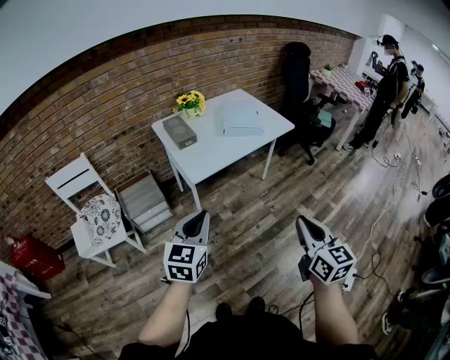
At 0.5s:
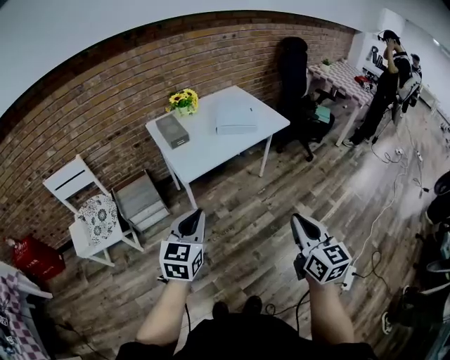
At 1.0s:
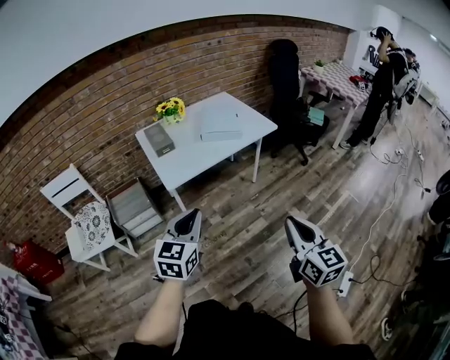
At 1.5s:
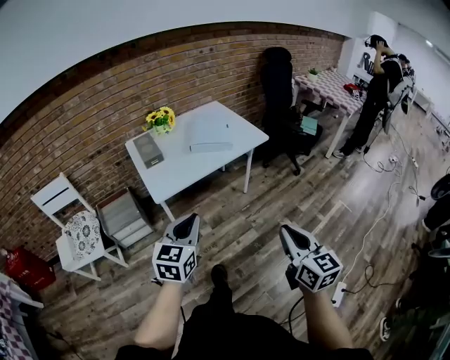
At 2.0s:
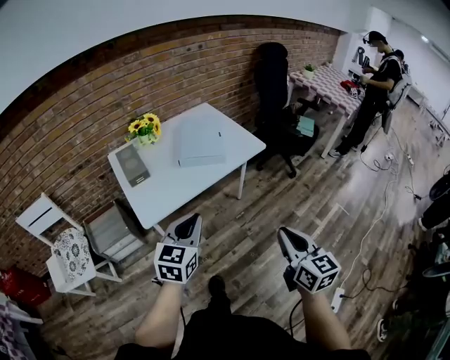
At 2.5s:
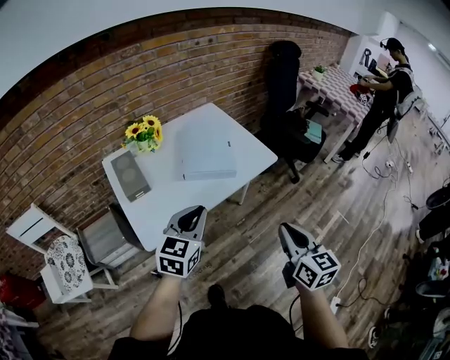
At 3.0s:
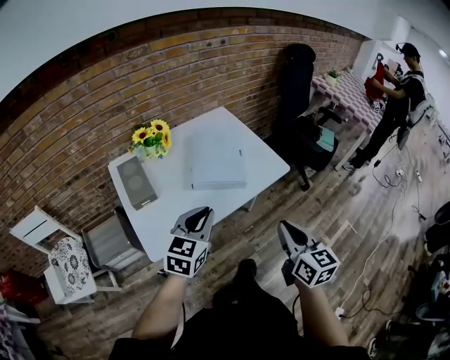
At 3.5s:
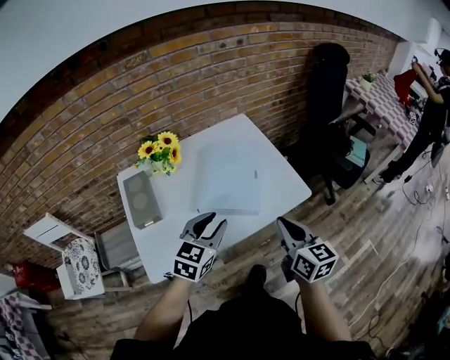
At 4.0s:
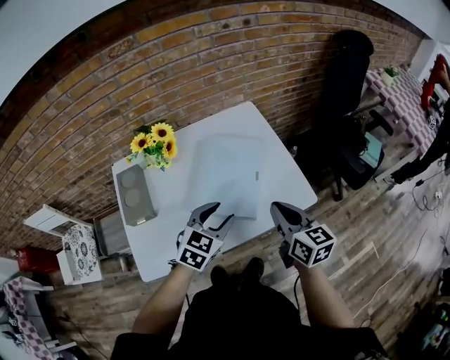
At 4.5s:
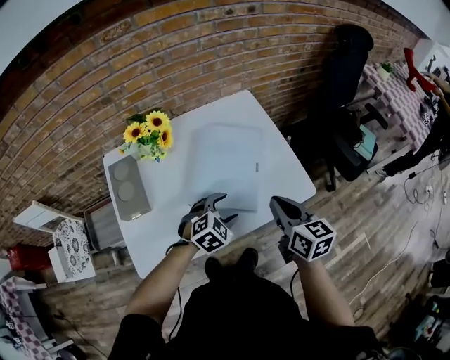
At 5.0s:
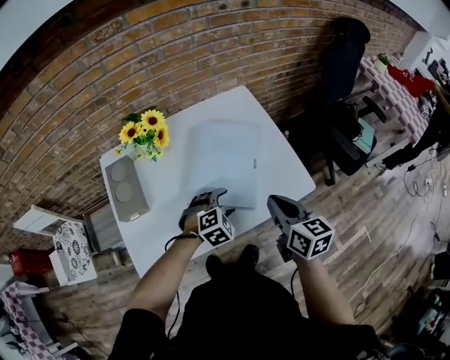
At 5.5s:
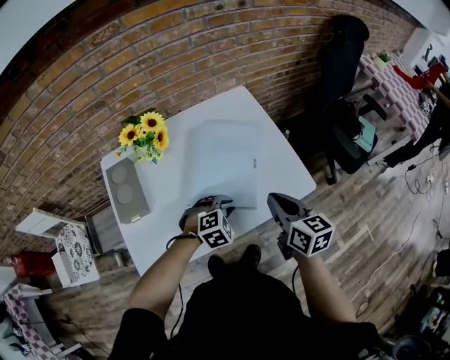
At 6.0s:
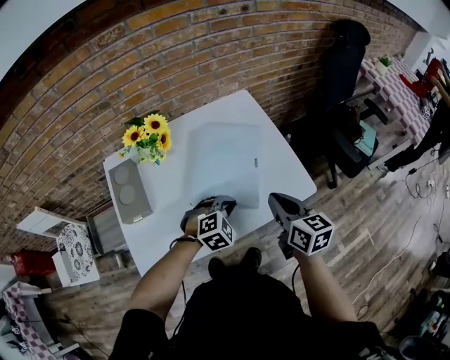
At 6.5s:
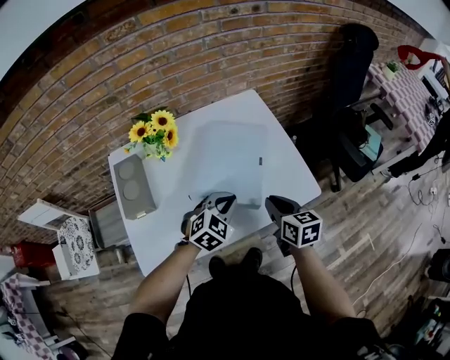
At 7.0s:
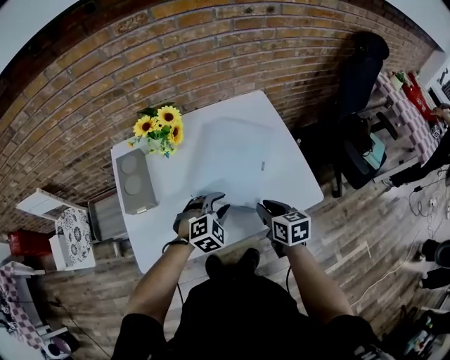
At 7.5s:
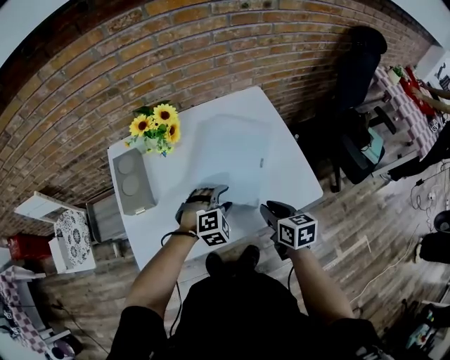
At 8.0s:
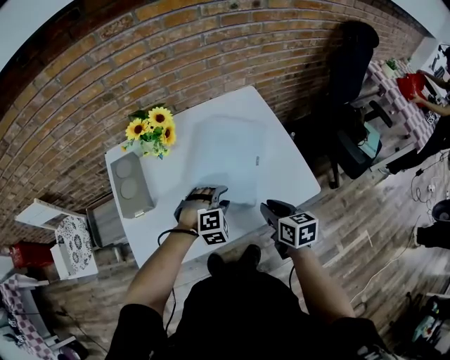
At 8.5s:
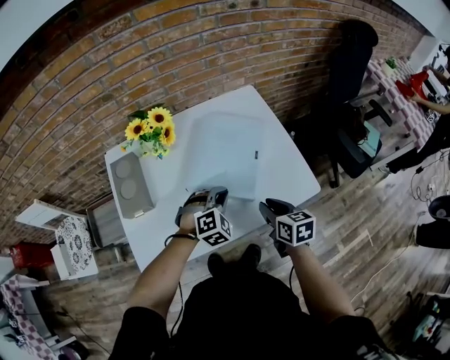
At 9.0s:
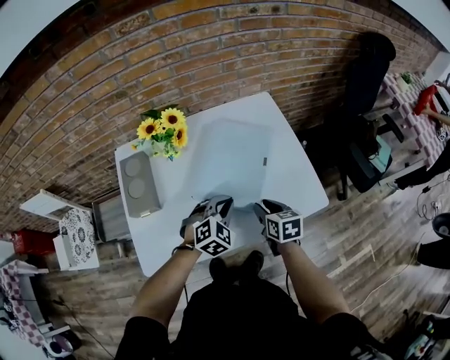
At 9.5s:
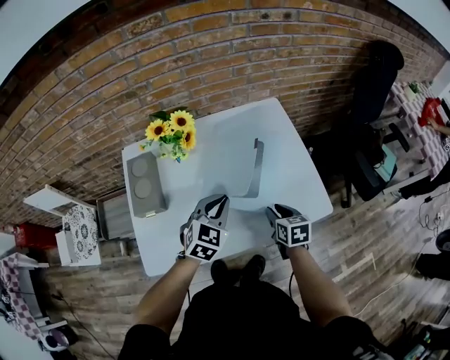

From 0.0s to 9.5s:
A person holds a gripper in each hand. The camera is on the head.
From 0.0s to 2.0s: Both grippers move forward and to the right, about 25 cm.
From 2.0s to 4.0s: Both grippers travel together forward, roughly 40 cm. The left gripper opens; the right gripper turns by roughly 20 degrees.
From 4.0s to 5.5s: The left gripper goes some 10 cm downward, and swivels about 40 degrees.
From 5.5s to 7.5s: The right gripper heads downward, covering about 10 cm, and opens. Meanwhile the left gripper opens its fingers.
From 7.5s to 9.5s: The right gripper changes place by roughly 5 cm. Meanwhile the left gripper travels upward by roughly 10 cm, rolls counterclockwise, seen from behind, by roughly 40 degrees, and closes its fingers.

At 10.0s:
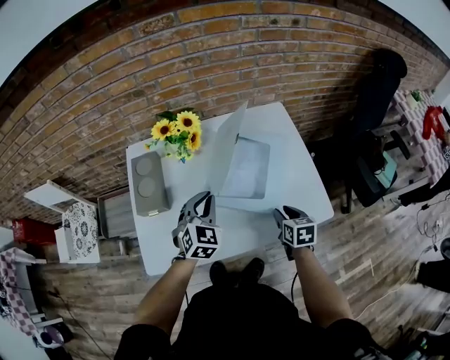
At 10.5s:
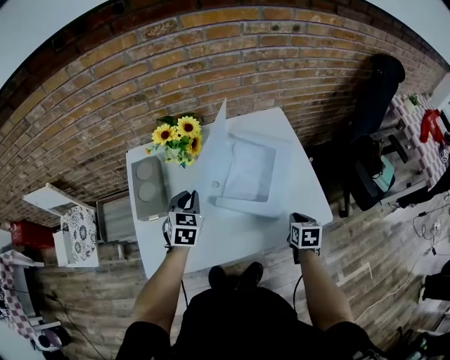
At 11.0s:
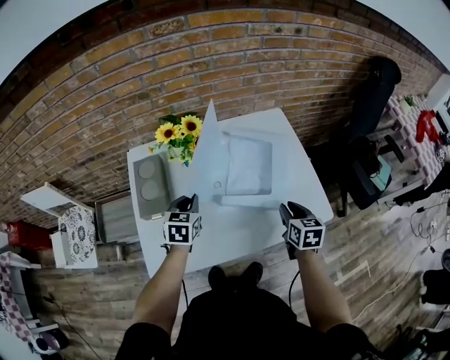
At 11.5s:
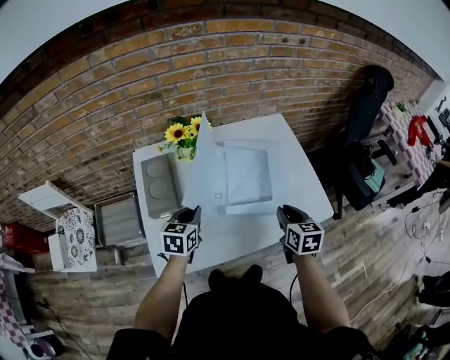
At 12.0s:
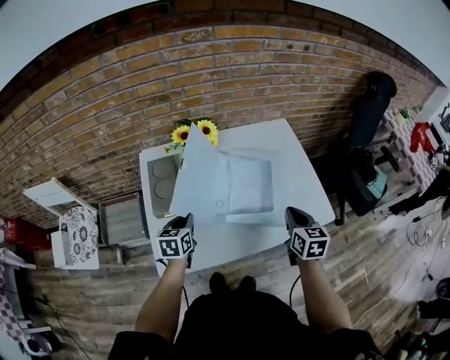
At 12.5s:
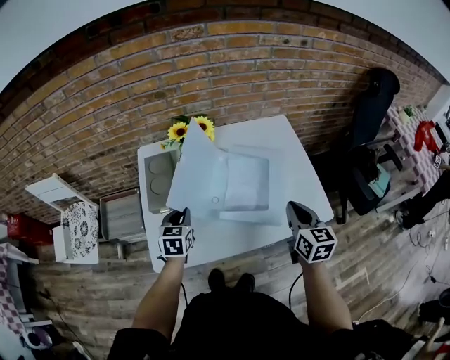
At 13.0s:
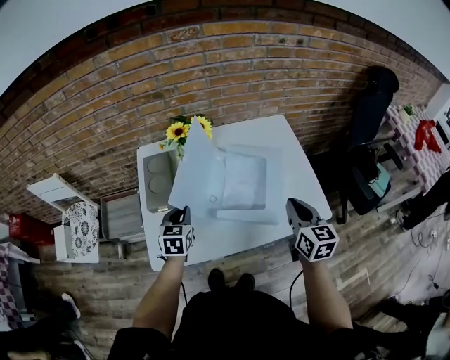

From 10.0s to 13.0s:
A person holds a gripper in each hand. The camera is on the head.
From 10.0s to 11.5s: The left gripper shifts some 10 cm to the left, and rotates approximately 40 degrees. Meanwhile the right gripper travels upward and to the left by some 10 cm.
From 11.5s to 13.0s: The right gripper goes roughly 10 cm upward.

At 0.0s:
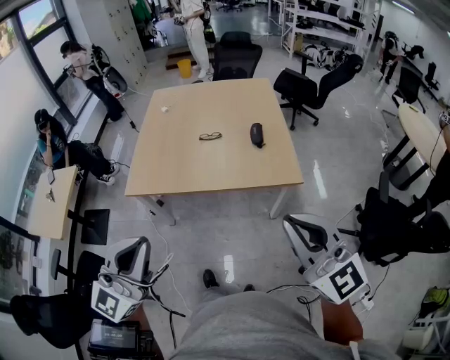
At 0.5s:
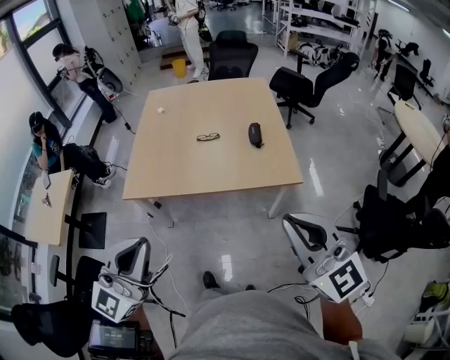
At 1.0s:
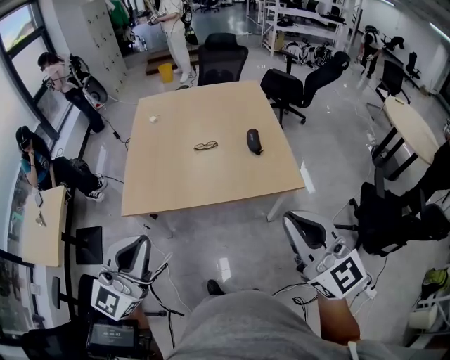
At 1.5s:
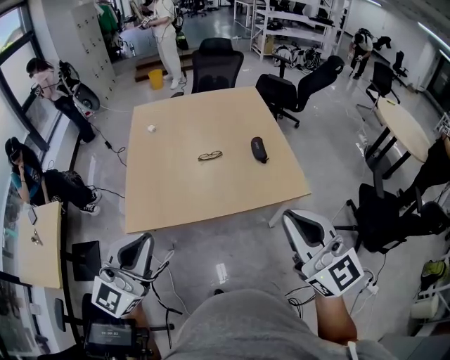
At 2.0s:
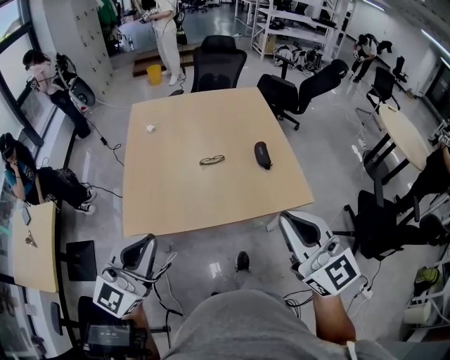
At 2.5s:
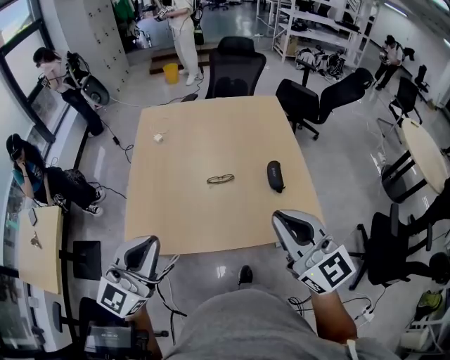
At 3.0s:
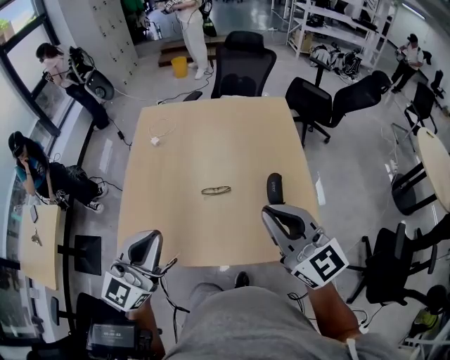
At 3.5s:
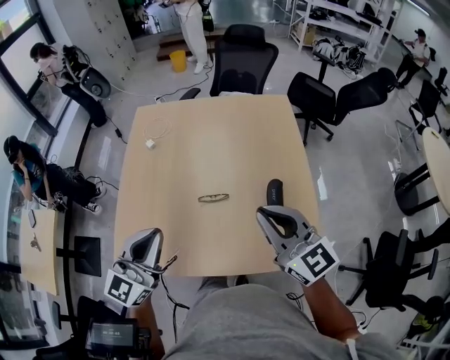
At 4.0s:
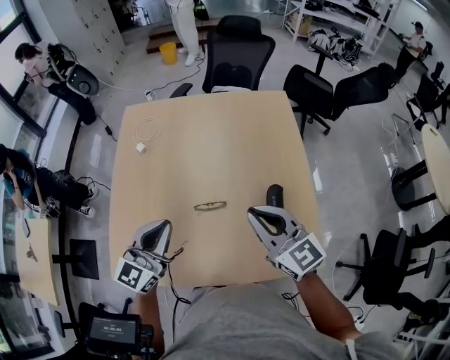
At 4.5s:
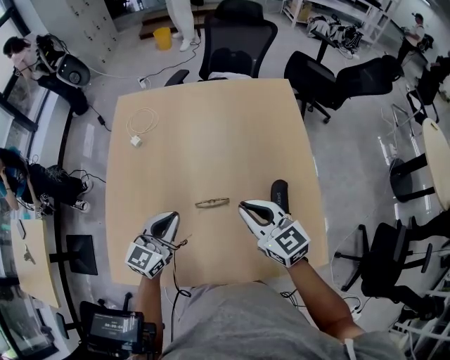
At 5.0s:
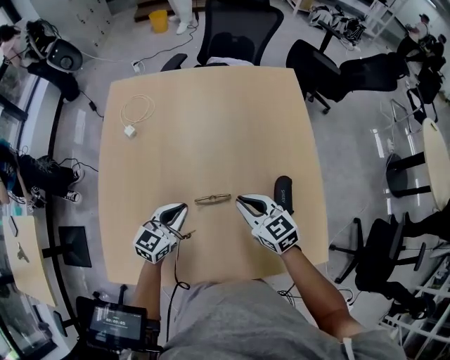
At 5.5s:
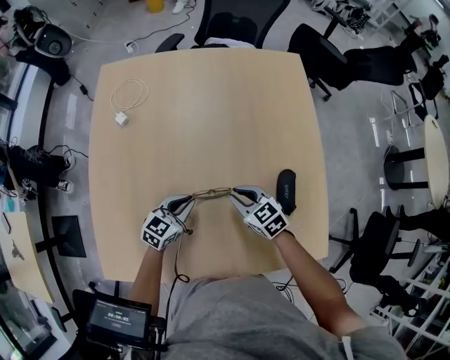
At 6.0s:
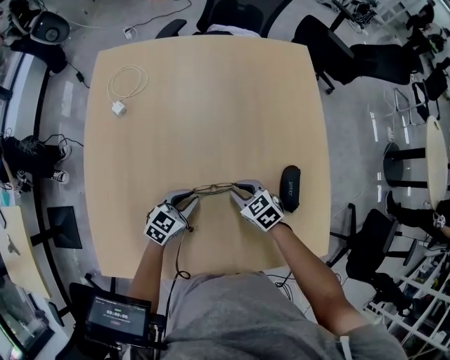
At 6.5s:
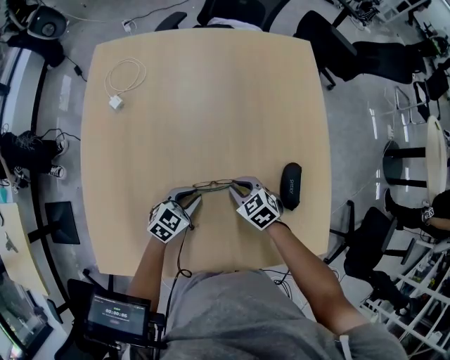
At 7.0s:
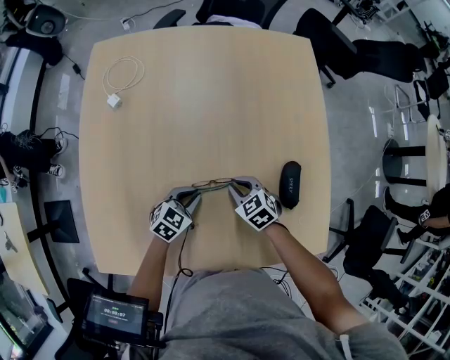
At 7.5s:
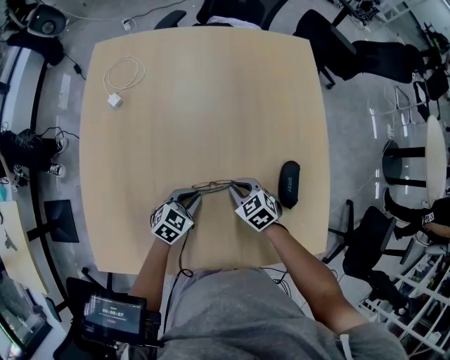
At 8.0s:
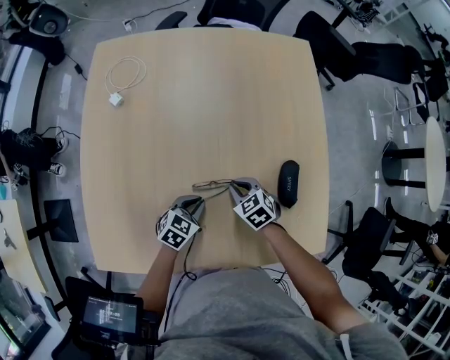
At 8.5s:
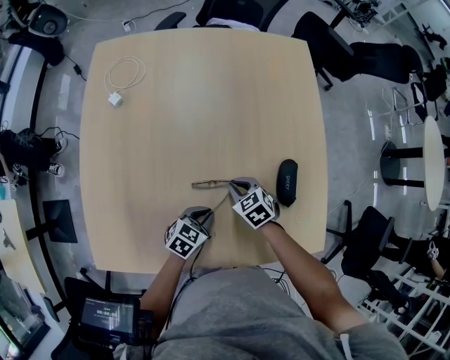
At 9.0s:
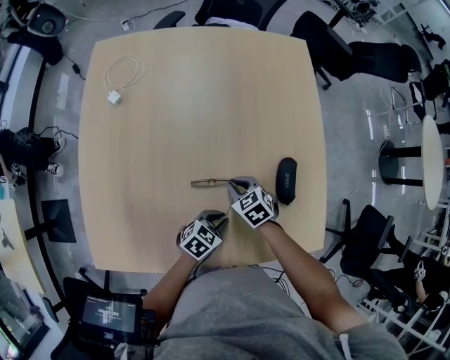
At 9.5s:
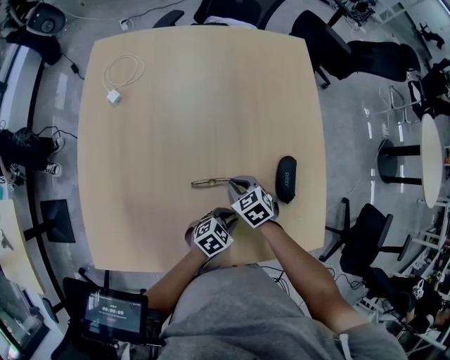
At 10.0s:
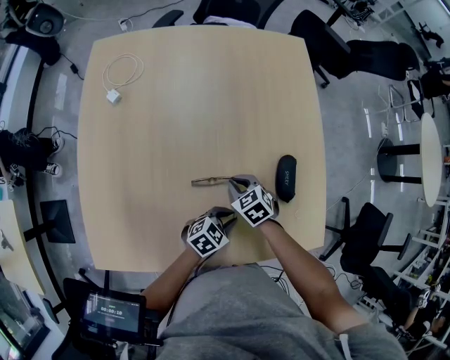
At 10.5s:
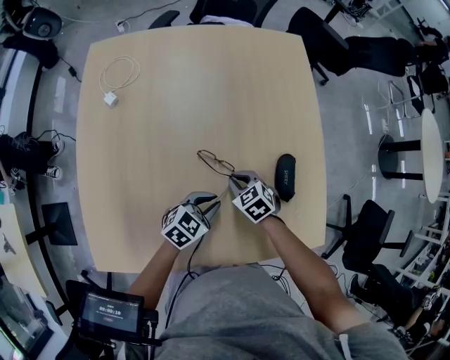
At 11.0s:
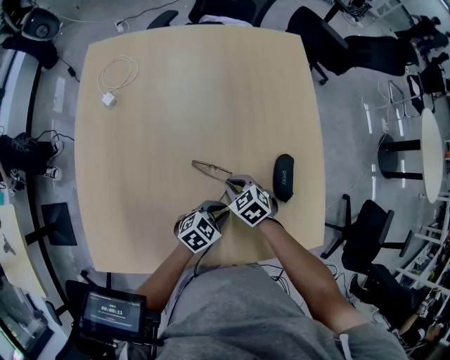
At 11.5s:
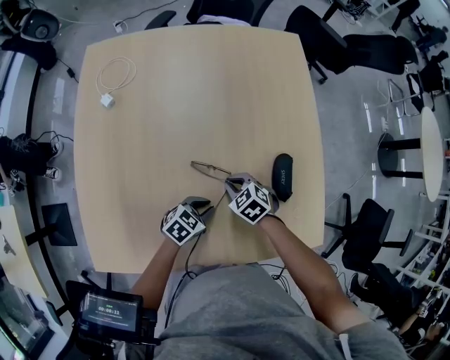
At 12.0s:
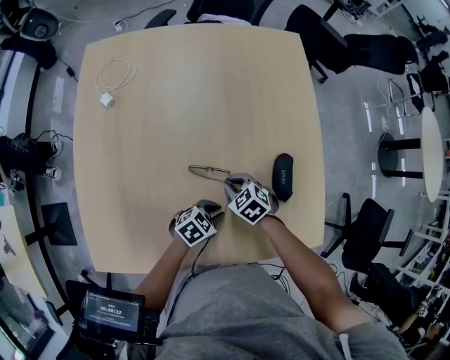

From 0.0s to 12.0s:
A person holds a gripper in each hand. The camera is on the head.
From 0.0s to 2.0s: Both grippers travel together forward and to the left, some 25 cm.
From 2.0s to 4.0s: Both grippers are carried forward, some 40 cm.
From 4.0s to 6.0s: Both grippers travel together downward, about 35 cm. The right gripper tilts its fingers approximately 40 degrees downward. The left gripper angles its fingers downward, by approximately 30 degrees.
From 6.0s to 8.0s: The left gripper ends up roughly 5 cm from where it was.
From 8.0s to 10.0s: The left gripper moves to the right, approximately 15 cm, and changes its angle by roughly 20 degrees.

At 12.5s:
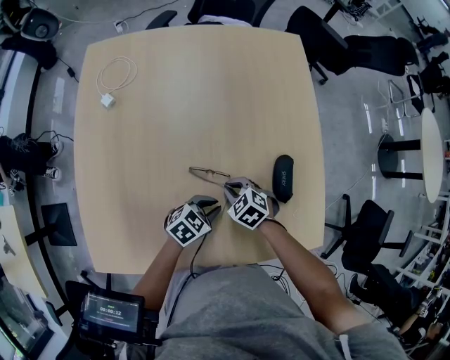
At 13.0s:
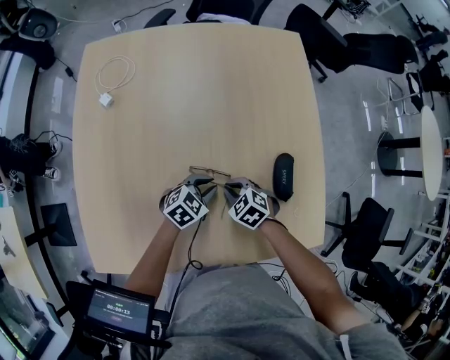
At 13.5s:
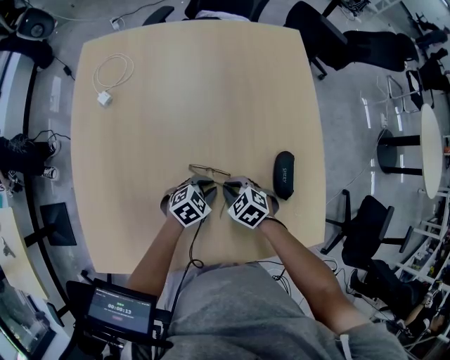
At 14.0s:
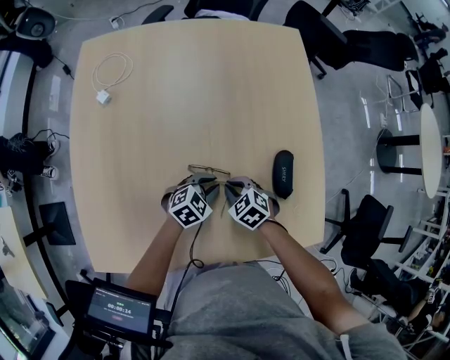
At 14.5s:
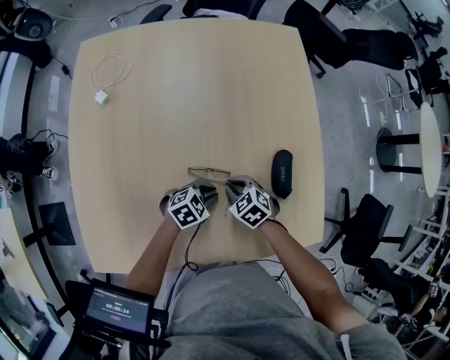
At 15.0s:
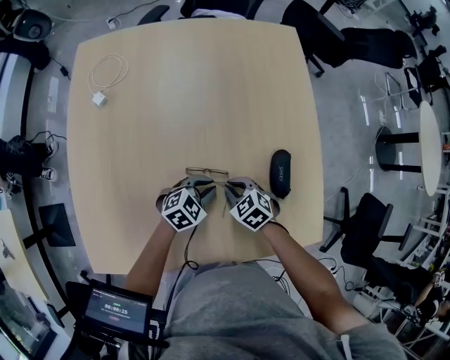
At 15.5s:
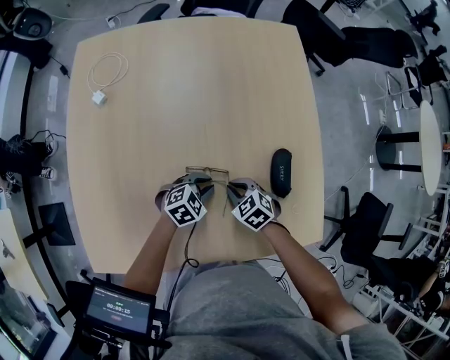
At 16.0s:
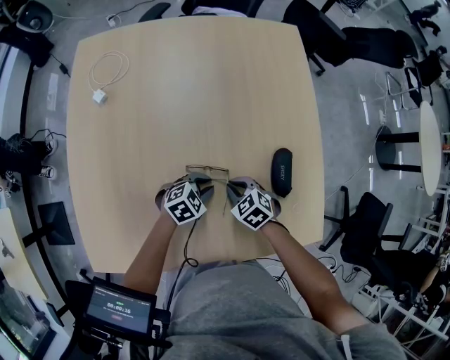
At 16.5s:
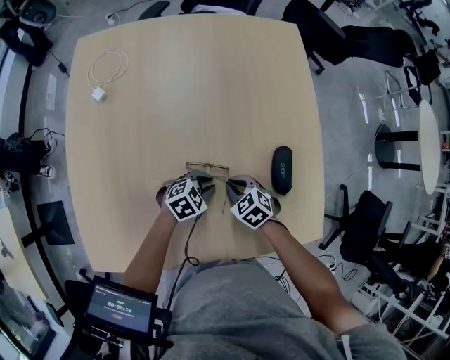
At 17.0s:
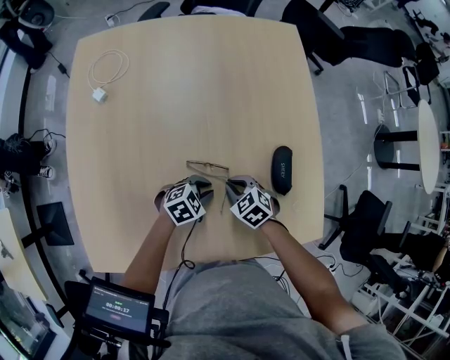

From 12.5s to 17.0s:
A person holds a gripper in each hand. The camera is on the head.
From 14.5s to 17.0s: The grippers stay close to where they were, moving slightly.
